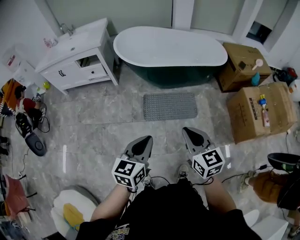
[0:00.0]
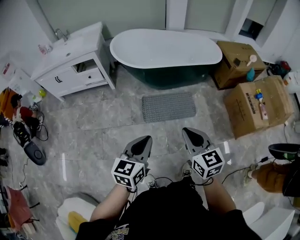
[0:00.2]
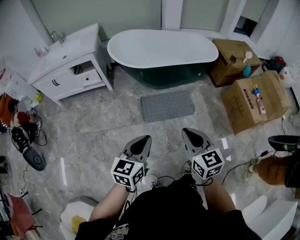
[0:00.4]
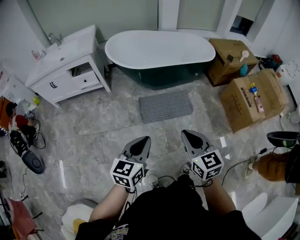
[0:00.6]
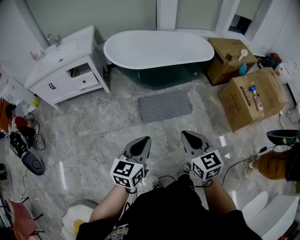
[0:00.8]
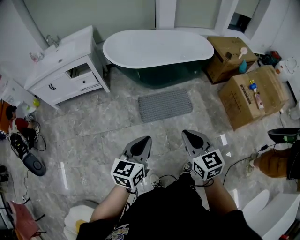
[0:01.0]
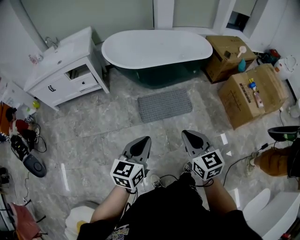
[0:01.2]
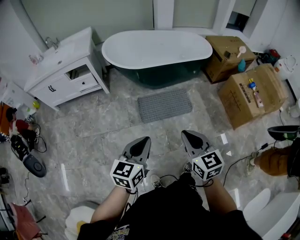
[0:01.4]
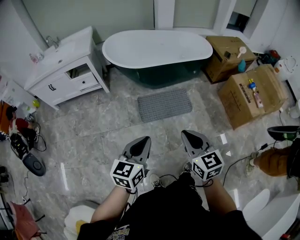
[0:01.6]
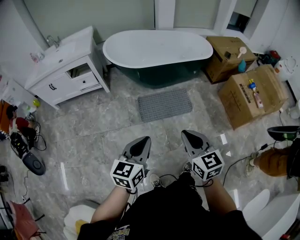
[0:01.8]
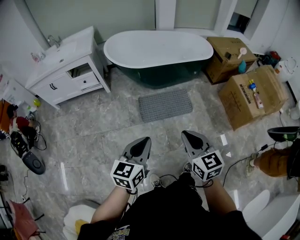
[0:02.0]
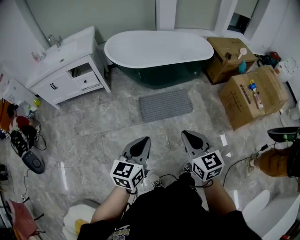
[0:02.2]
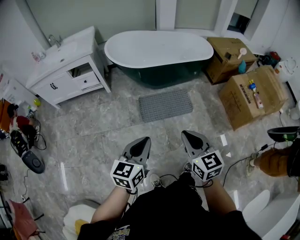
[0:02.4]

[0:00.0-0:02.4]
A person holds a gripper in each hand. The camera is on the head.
0:00.0 to 0:01.2: The left gripper is displaced to the left by about 5 cm. The right gripper goes some 10 cm backward and to the left.
0:01.2 to 0:02.4: There are only small adjustments of the grippers.

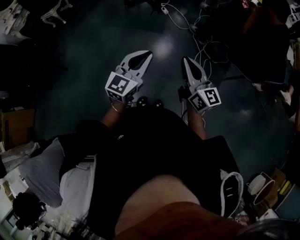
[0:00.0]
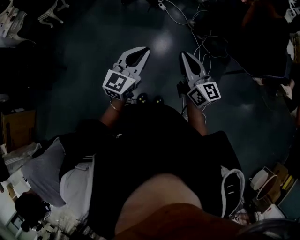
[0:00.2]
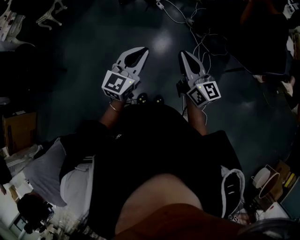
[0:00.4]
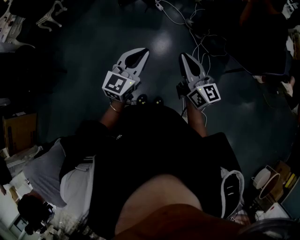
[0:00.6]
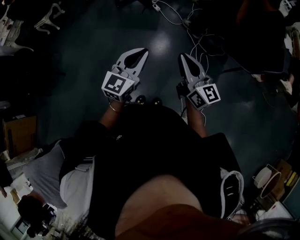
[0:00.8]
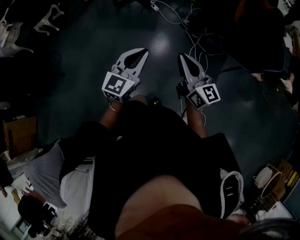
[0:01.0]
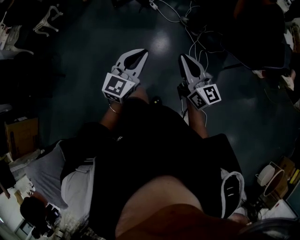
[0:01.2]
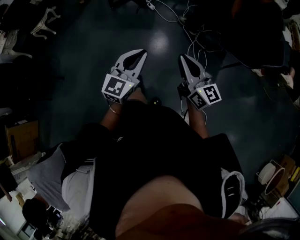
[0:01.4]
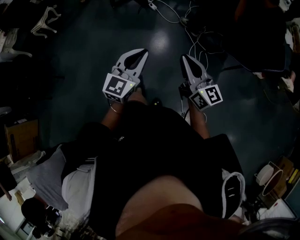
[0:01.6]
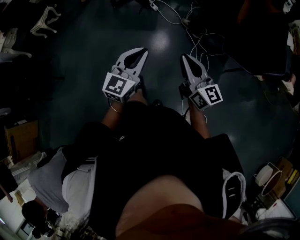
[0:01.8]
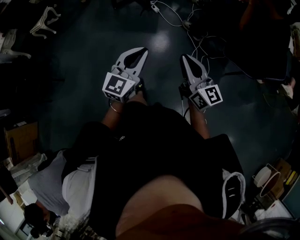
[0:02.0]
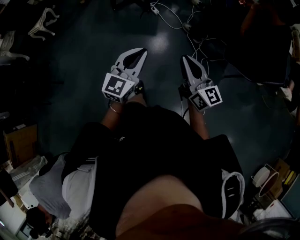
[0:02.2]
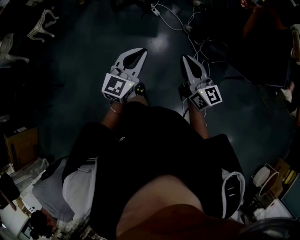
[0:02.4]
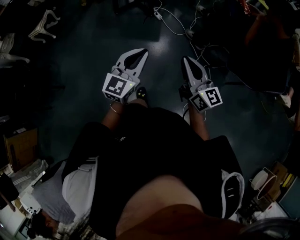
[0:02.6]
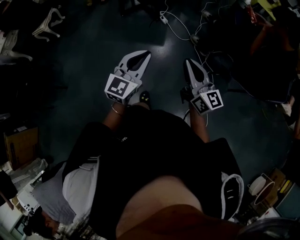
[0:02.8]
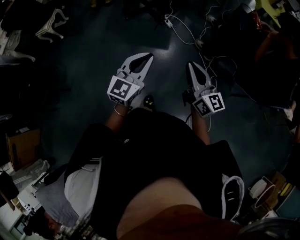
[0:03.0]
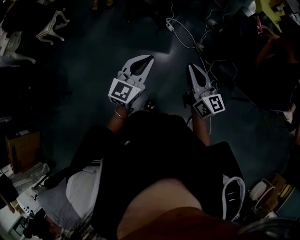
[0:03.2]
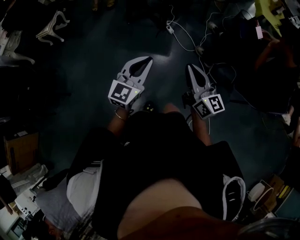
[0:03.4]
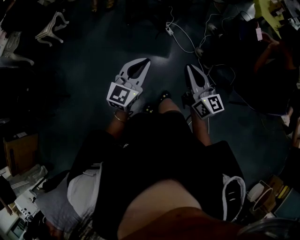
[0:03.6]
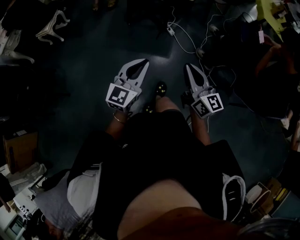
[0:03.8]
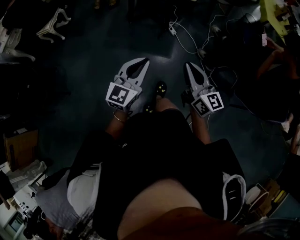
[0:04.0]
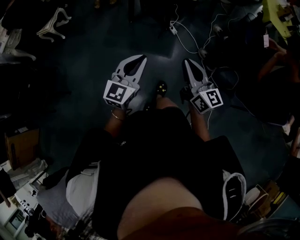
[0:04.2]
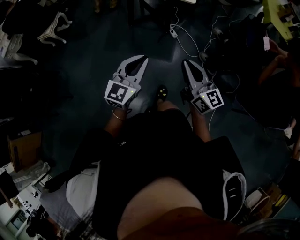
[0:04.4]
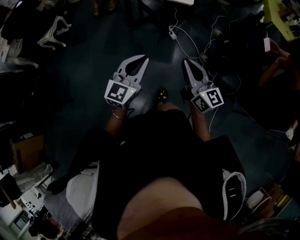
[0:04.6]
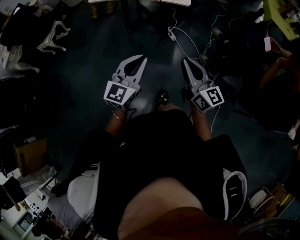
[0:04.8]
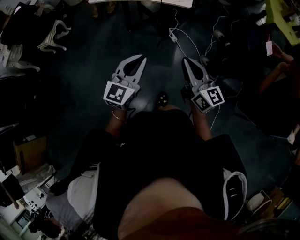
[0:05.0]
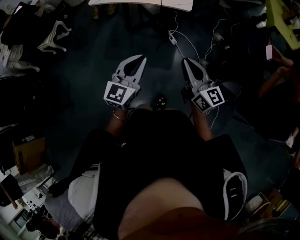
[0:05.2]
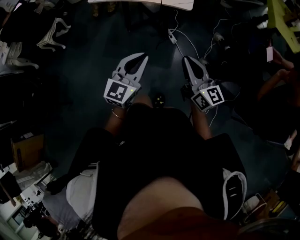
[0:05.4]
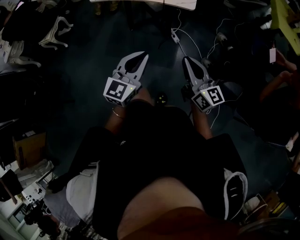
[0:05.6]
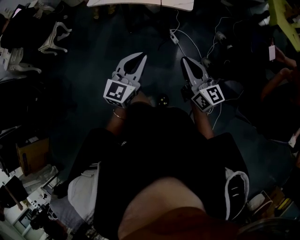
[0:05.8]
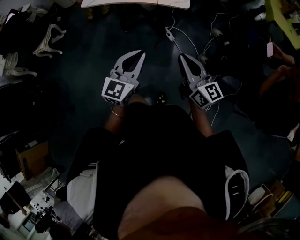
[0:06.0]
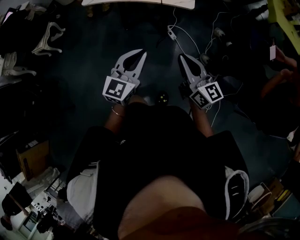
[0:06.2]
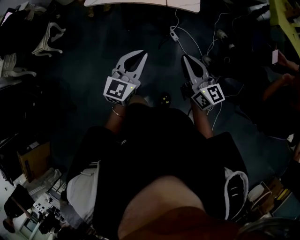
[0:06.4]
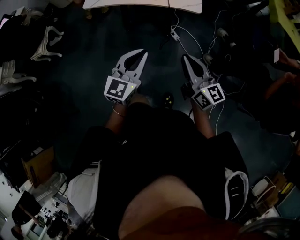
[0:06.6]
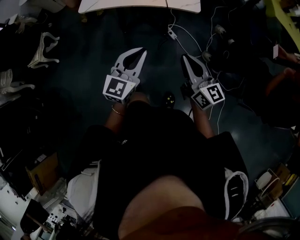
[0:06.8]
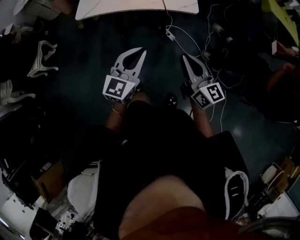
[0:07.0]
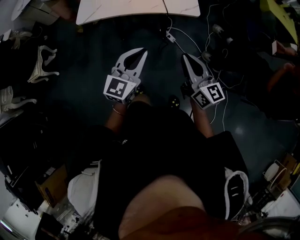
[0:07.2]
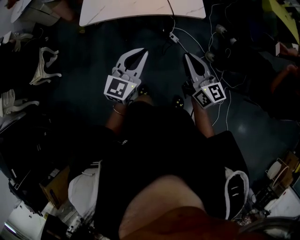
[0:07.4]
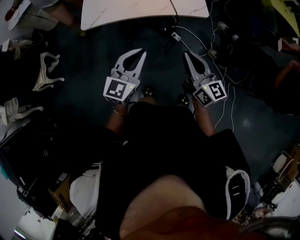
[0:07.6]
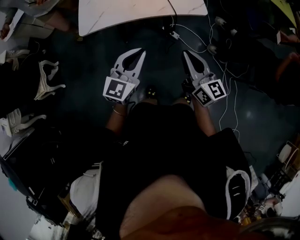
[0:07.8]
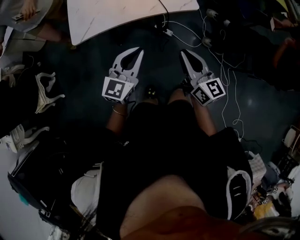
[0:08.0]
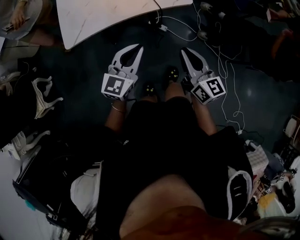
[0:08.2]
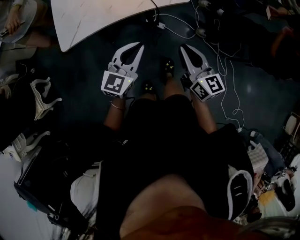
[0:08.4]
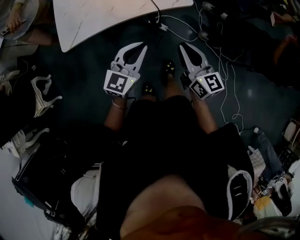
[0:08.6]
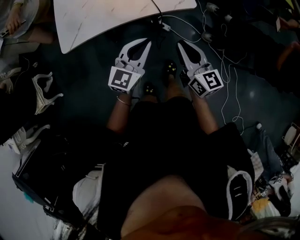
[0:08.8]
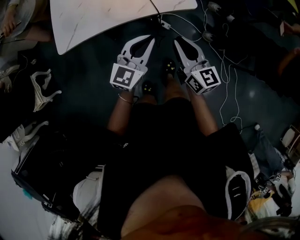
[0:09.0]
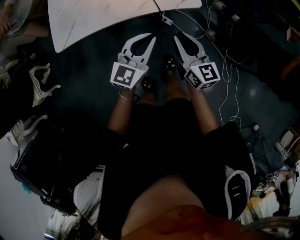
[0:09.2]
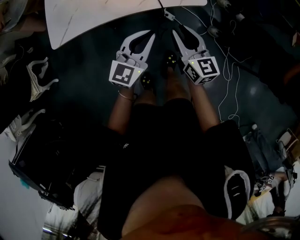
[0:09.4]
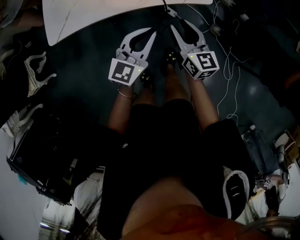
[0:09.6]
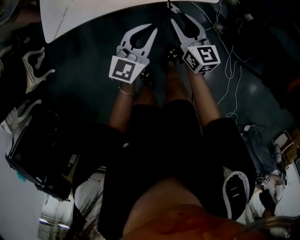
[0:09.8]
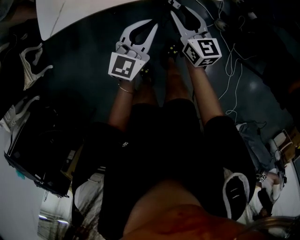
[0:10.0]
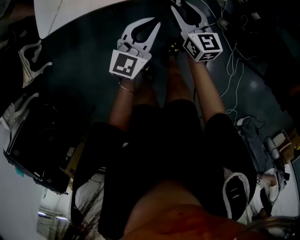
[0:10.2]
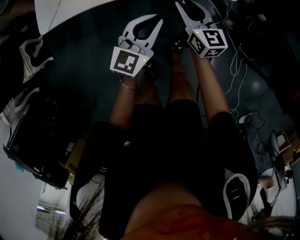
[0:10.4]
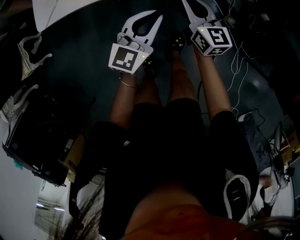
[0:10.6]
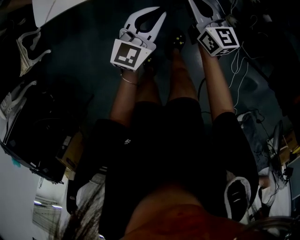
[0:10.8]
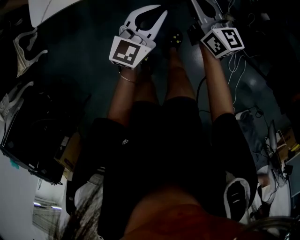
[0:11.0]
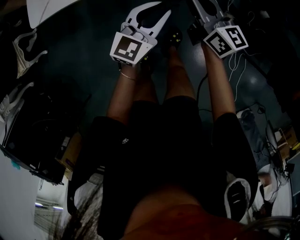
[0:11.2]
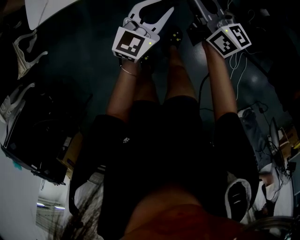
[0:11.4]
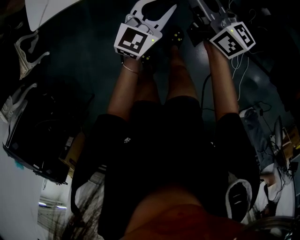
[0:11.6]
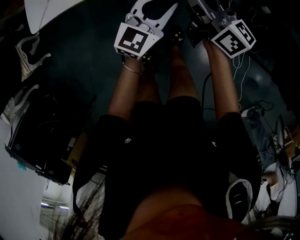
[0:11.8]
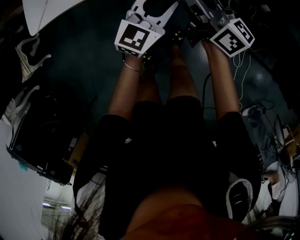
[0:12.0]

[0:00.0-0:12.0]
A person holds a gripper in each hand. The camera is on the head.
0:00.0 to 0:01.6: Both grippers move to the right, some 5 cm.
0:01.6 to 0:03.0: Both grippers travel together forward and to the left, roughly 25 cm.
0:03.0 to 0:04.4: Both grippers travel together forward, about 10 cm.
0:04.4 to 0:06.0: Both grippers move forward, about 15 cm.
0:06.0 to 0:07.6: The grippers both shift to the left and forward by about 20 cm.
0:07.6 to 0:09.0: The left gripper is displaced forward, to the right and downward by approximately 15 cm, while the right gripper shifts about 15 cm forward and downward.
0:09.0 to 0:10.4: The right gripper goes some 20 cm downward and forward, and opens. Meanwhile the left gripper travels downward by some 10 cm.
0:10.4 to 0:12.0: The left gripper moves approximately 5 cm; the right gripper moves upward, about 10 cm, changes its angle by about 30 degrees, and closes its fingers.

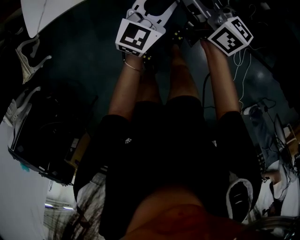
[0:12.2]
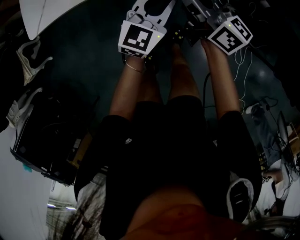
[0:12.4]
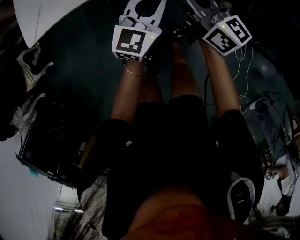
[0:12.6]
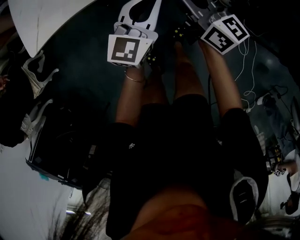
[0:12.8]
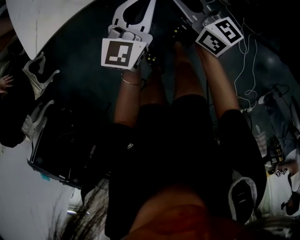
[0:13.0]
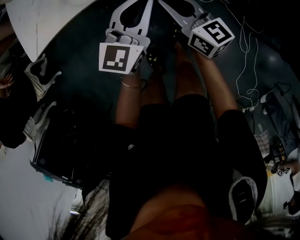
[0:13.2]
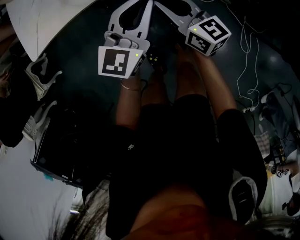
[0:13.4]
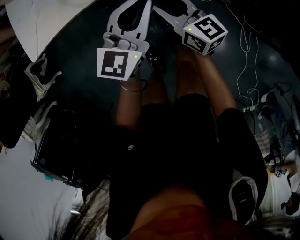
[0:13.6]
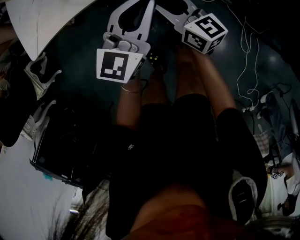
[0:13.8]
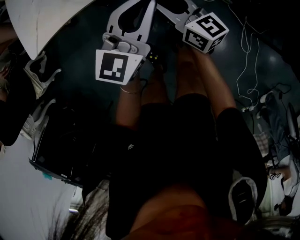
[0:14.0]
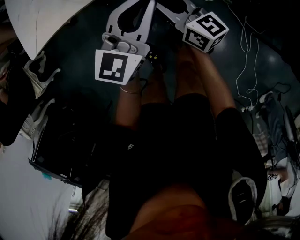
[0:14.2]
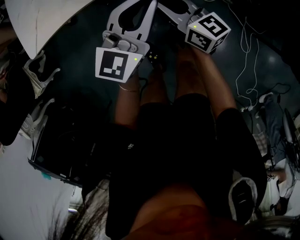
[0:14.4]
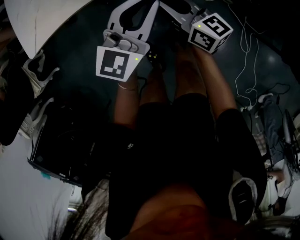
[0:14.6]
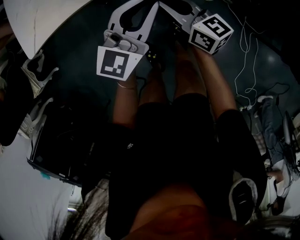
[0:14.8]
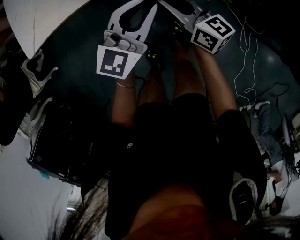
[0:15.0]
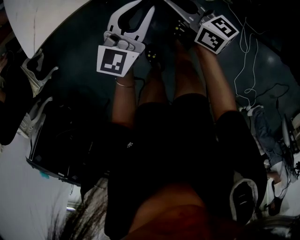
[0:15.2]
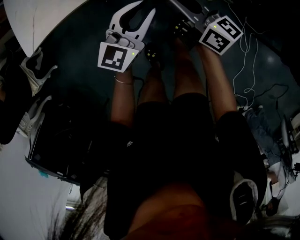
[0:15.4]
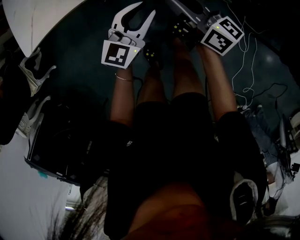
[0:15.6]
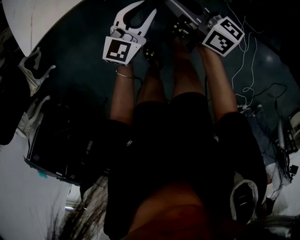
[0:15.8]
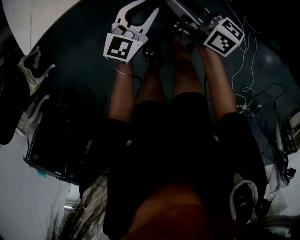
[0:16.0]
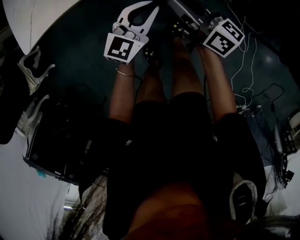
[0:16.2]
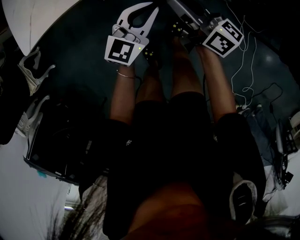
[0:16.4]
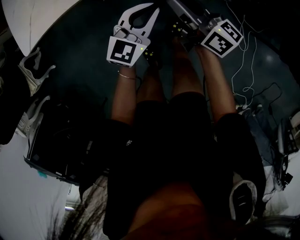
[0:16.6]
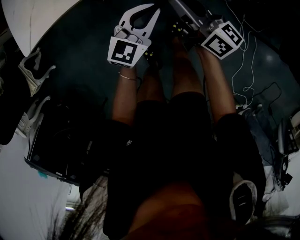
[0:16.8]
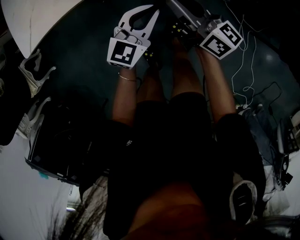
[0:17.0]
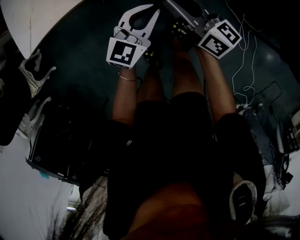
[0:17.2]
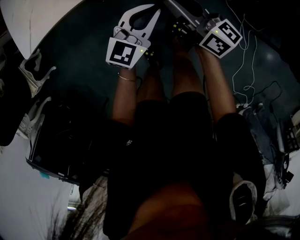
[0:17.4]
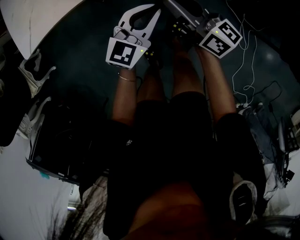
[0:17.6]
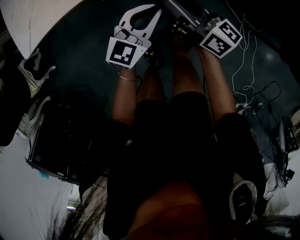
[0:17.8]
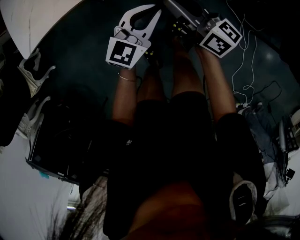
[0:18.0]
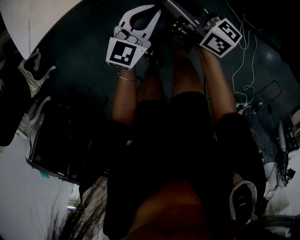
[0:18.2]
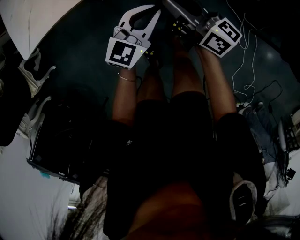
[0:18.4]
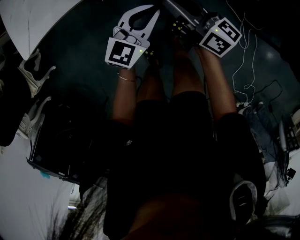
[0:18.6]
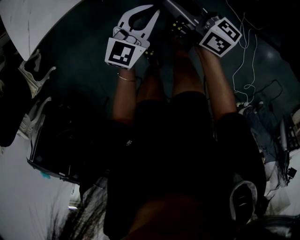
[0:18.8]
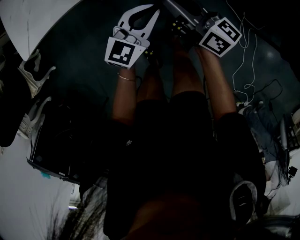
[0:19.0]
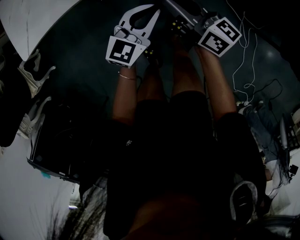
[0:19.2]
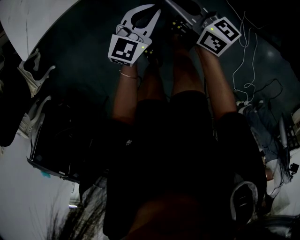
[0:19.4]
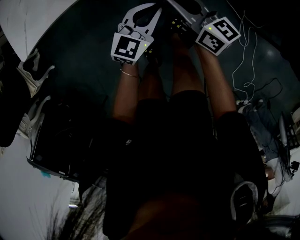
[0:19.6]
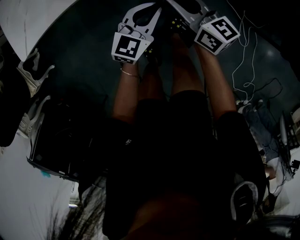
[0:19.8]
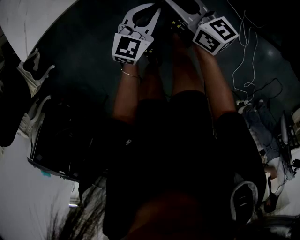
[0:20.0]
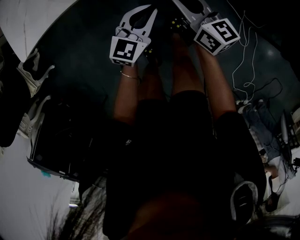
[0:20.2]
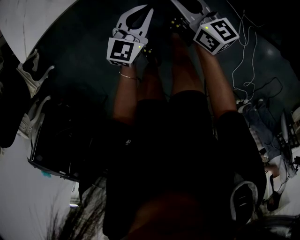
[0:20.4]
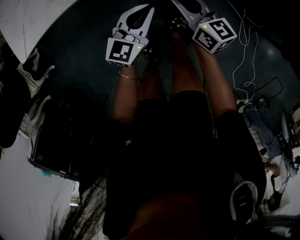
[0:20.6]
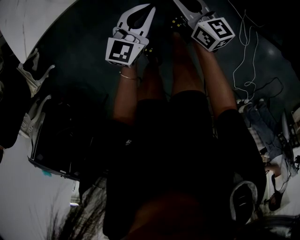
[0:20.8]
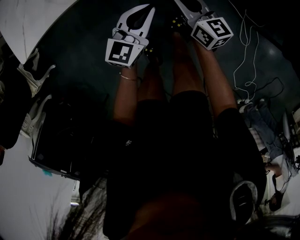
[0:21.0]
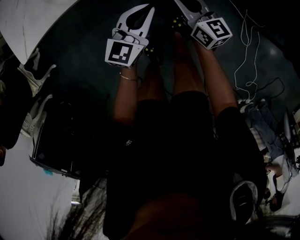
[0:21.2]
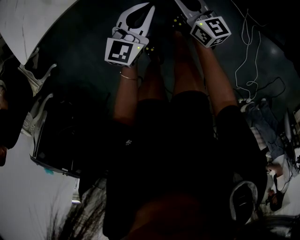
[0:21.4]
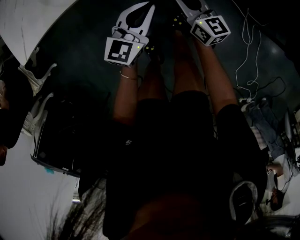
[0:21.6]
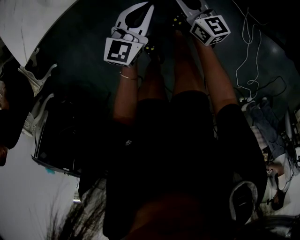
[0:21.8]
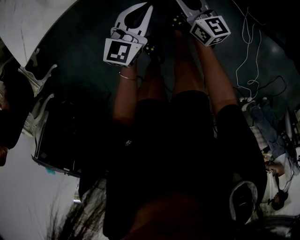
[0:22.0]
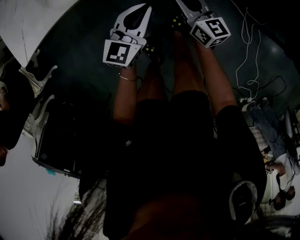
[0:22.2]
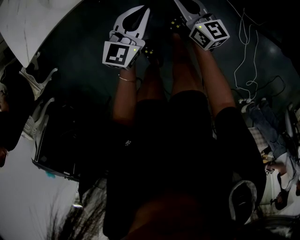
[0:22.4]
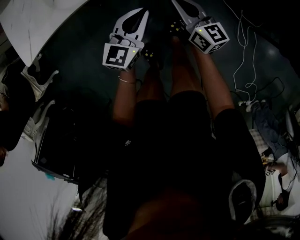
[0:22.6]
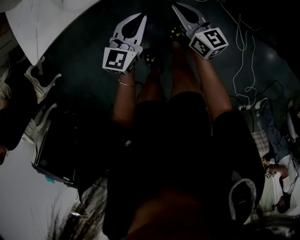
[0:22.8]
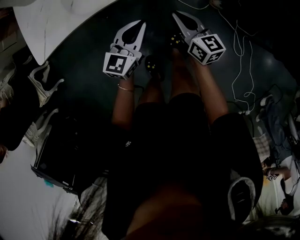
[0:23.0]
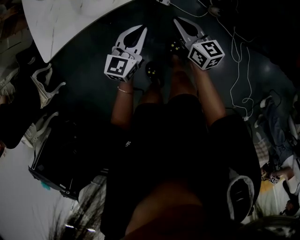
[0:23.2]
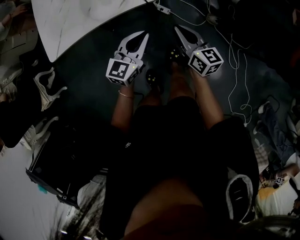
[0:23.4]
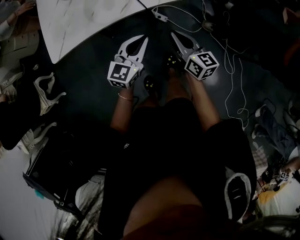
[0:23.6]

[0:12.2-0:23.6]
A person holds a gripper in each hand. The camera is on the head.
0:12.2 to 0:13.6: The left gripper goes roughly 5 cm upward. Meanwhile the right gripper is displaced downward by about 5 cm, and opens.
0:13.6 to 0:15.0: There are only small adjustments of the grippers.
0:15.0 to 0:16.4: The left gripper is displaced downward by roughly 10 cm.
0:16.4 to 0:19.4: The grippers make only small movements.
0:19.4 to 0:20.8: The right gripper shifts about 5 cm downward.
0:20.8 to 0:22.2: There are only small adjustments of the grippers.
0:22.2 to 0:23.6: The grippers both shift upward by some 15 cm.
